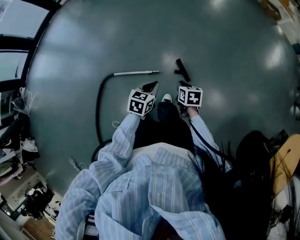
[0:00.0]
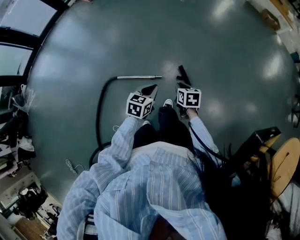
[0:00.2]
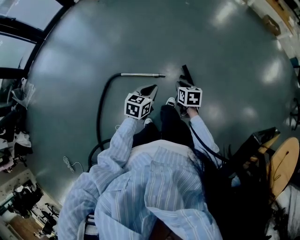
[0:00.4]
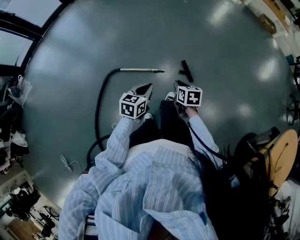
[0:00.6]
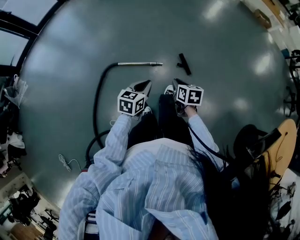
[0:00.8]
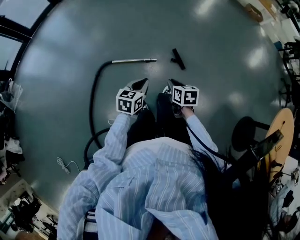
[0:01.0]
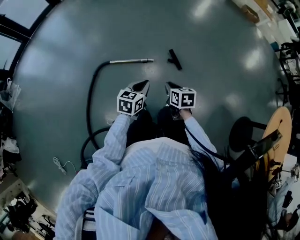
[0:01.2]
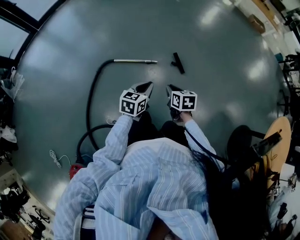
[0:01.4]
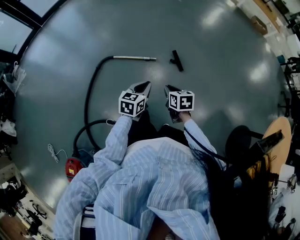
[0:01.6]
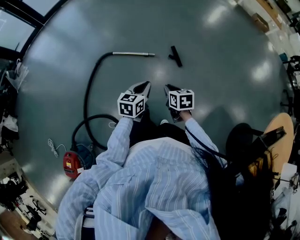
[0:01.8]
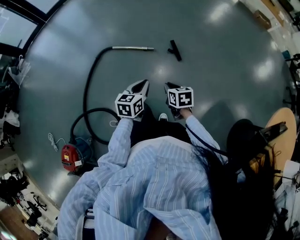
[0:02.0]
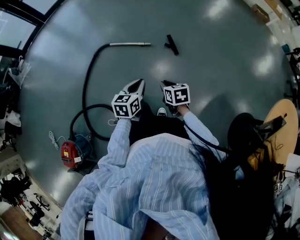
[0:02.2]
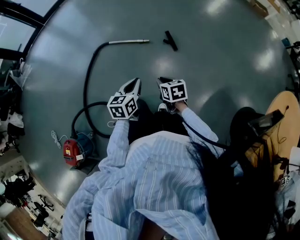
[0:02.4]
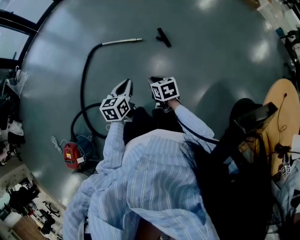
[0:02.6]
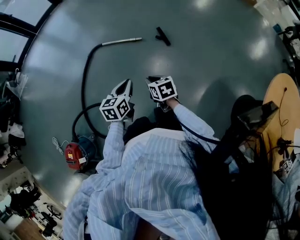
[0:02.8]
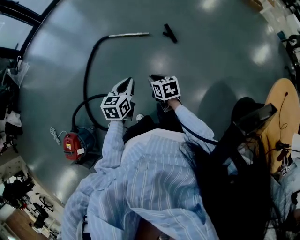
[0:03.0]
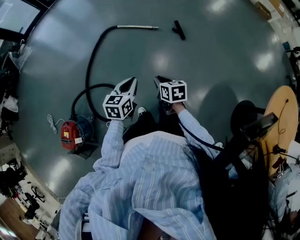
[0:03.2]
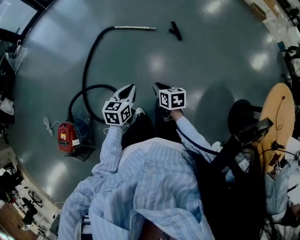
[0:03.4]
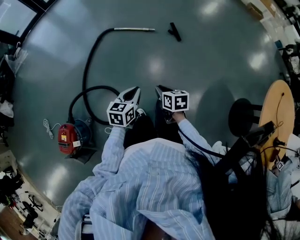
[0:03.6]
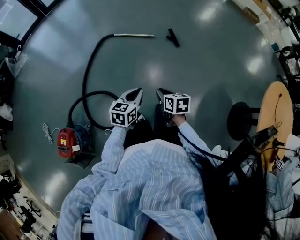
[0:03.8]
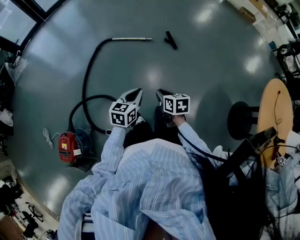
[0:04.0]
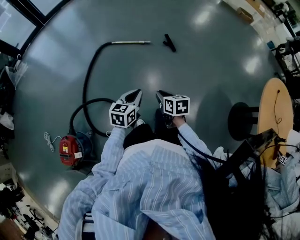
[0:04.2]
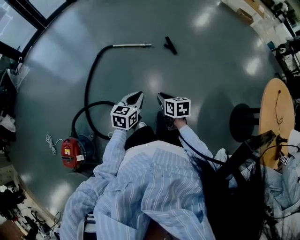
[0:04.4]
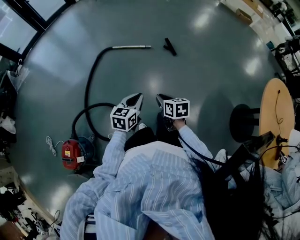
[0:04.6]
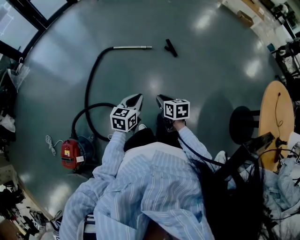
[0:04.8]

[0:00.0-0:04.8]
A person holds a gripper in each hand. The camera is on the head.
0.0 to 1.6 s: The two grippers go about 30 cm backward.
1.6 to 3.2 s: The two grippers go about 30 cm backward.
3.2 to 4.8 s: Both grippers travel together backward, approximately 5 cm.

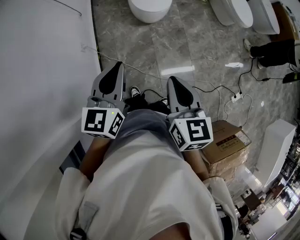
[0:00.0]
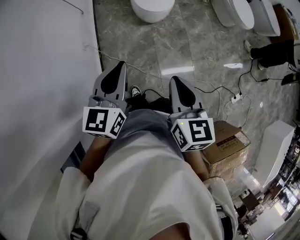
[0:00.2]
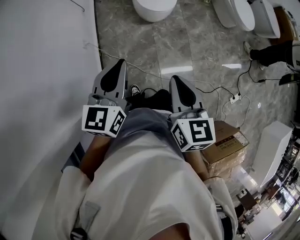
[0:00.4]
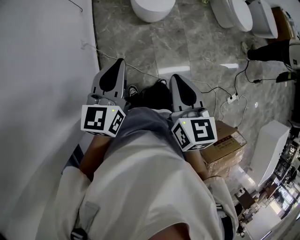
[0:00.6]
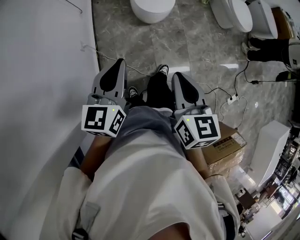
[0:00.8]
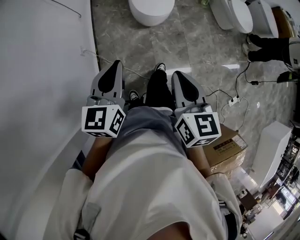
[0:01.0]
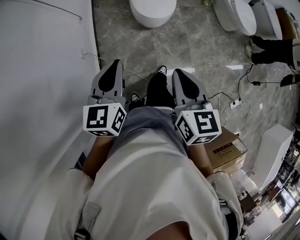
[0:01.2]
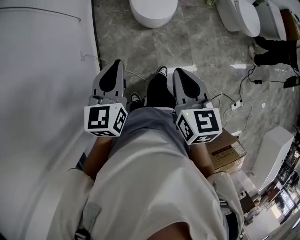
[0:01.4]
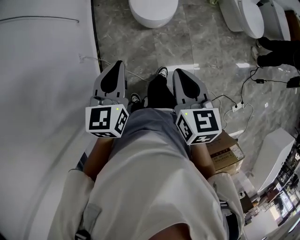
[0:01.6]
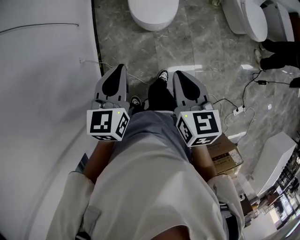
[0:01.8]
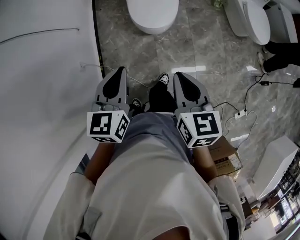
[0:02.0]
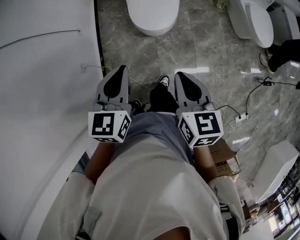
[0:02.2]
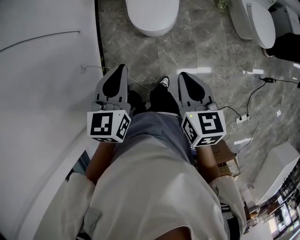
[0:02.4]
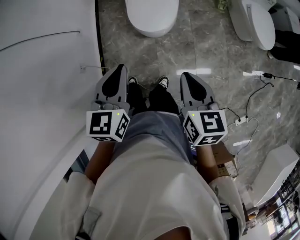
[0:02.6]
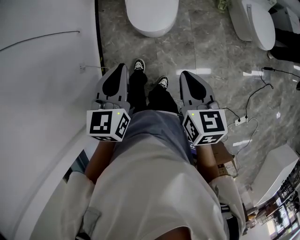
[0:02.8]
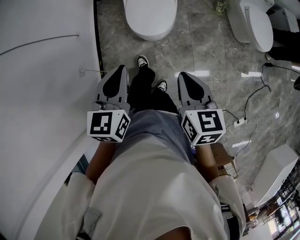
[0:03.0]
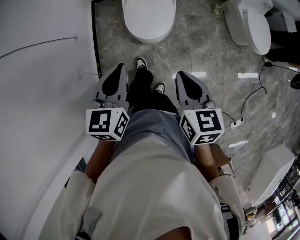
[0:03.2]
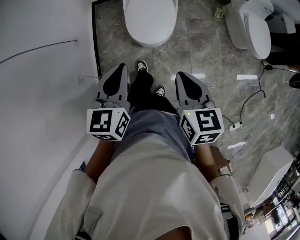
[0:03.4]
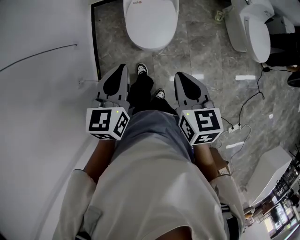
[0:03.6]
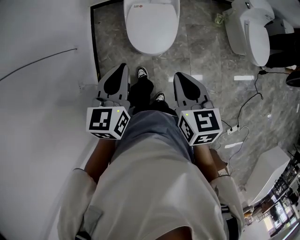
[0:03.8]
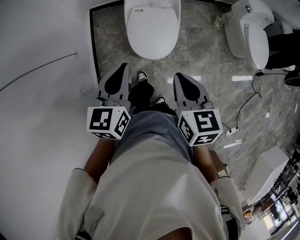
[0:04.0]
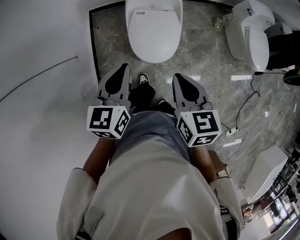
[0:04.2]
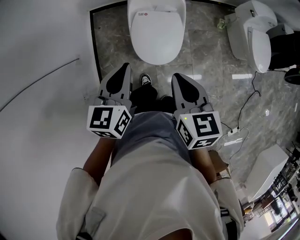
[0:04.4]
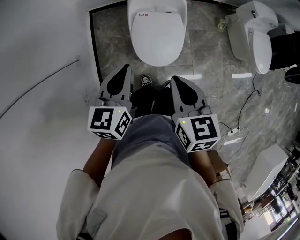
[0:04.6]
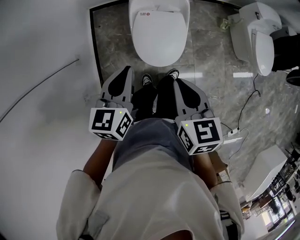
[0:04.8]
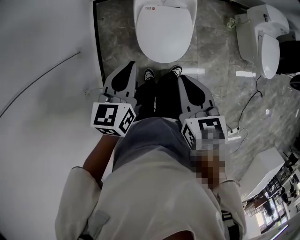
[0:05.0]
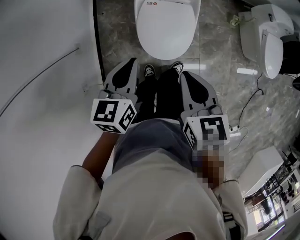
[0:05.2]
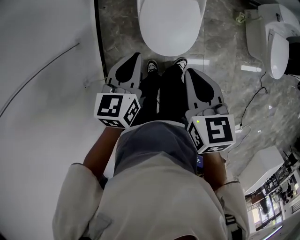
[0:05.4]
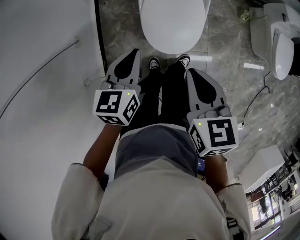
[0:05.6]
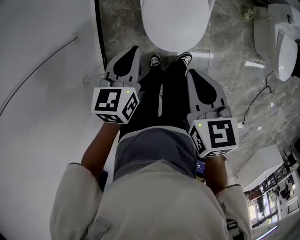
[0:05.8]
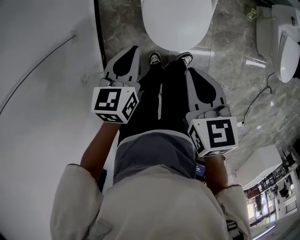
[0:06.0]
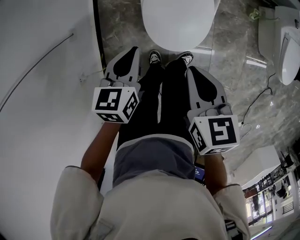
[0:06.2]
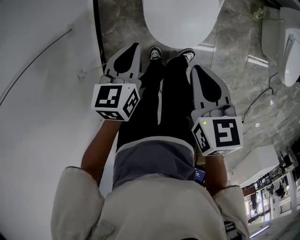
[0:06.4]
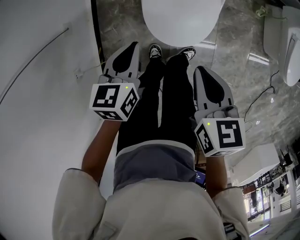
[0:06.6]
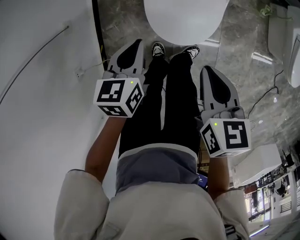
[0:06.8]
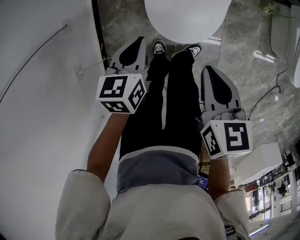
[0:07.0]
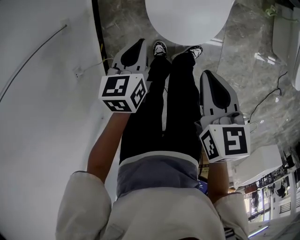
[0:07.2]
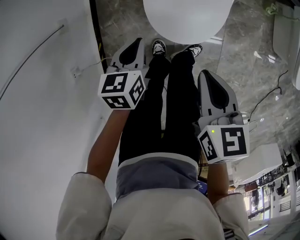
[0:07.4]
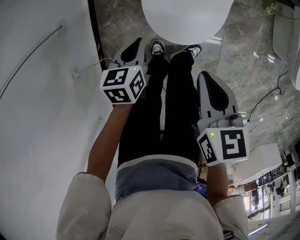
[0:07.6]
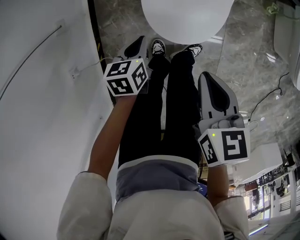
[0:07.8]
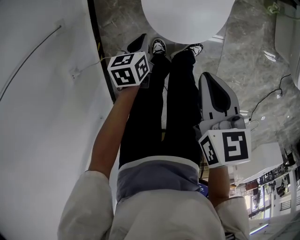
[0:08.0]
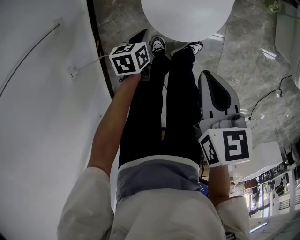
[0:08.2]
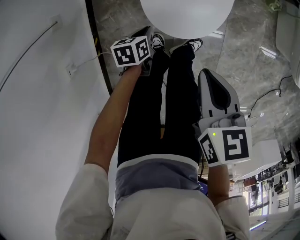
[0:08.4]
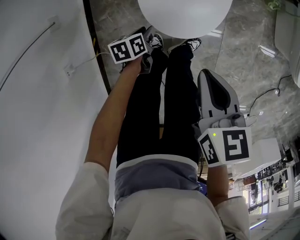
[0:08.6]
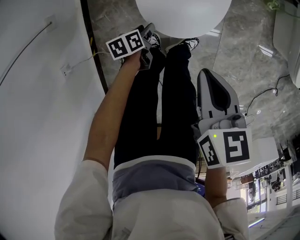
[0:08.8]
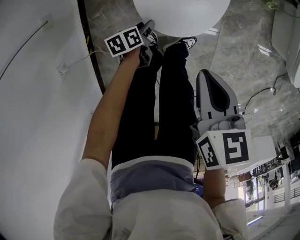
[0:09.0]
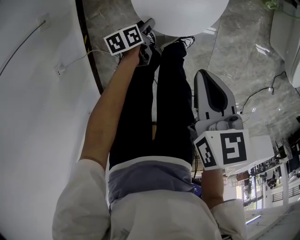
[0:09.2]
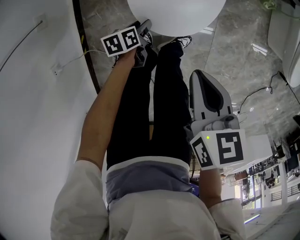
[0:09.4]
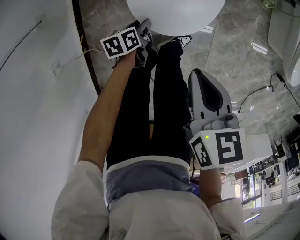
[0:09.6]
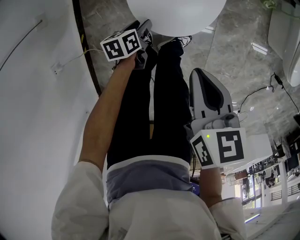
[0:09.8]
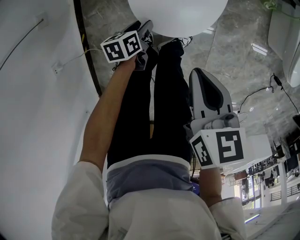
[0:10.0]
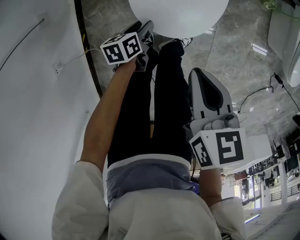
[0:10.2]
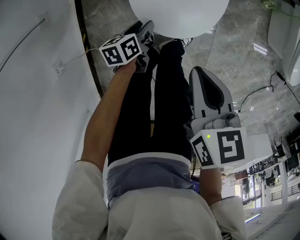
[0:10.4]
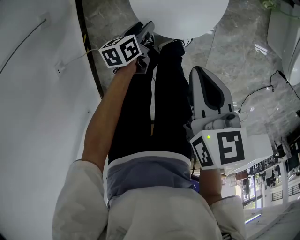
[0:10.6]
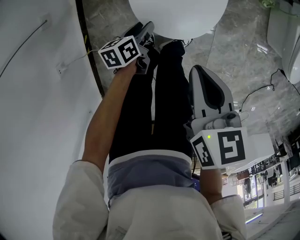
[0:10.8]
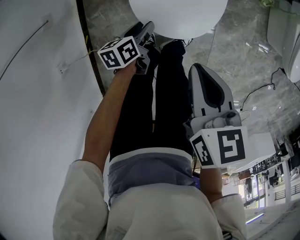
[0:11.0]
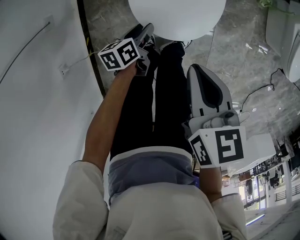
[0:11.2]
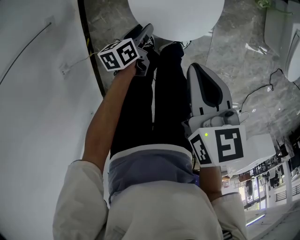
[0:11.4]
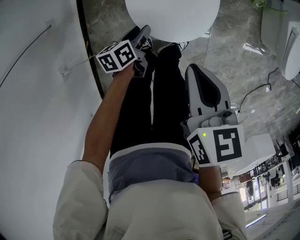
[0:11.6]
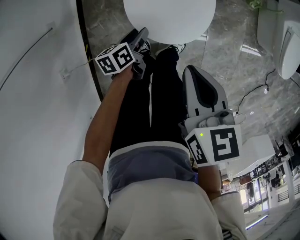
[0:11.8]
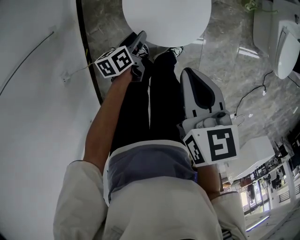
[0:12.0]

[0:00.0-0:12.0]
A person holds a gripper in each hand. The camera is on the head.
0.0 to 1.6 s: The grippers both shift forward by approximately 20 cm.
1.6 to 3.0 s: Both grippers travel together to the right and forward, approximately 20 cm.
3.0 to 4.4 s: The left gripper goes approximately 25 cm forward, while the right gripper goes approximately 25 cm forward and to the left.
4.4 to 6.0 s: The left gripper shifts about 20 cm downward; the right gripper moves downward and forward, roughly 15 cm.
6.0 to 7.6 s: The right gripper heads downward, covering approximately 15 cm, while the left gripper shifts about 20 cm downward.
7.6 to 9.0 s: The left gripper goes some 20 cm downward, swivels some 30 degrees, and opens its fingers.
9.0 to 10.4 s: The left gripper goes about 5 cm upward.
10.4 to 12.0 s: Both grippers travel together upward, roughly 10 cm.

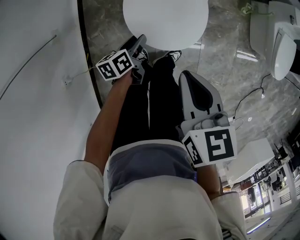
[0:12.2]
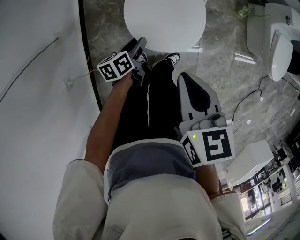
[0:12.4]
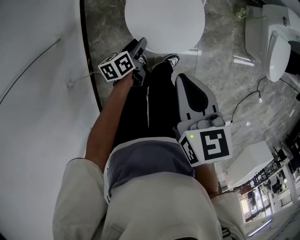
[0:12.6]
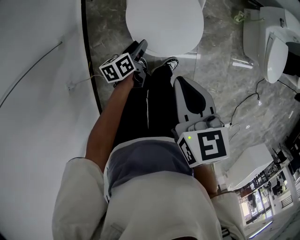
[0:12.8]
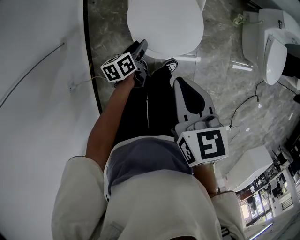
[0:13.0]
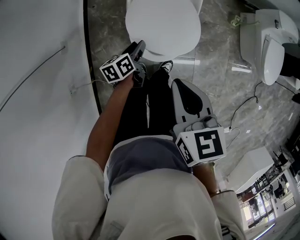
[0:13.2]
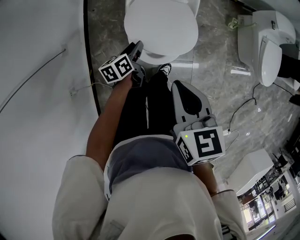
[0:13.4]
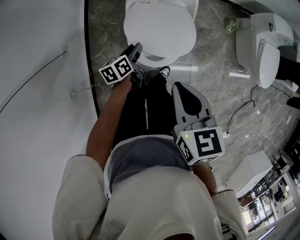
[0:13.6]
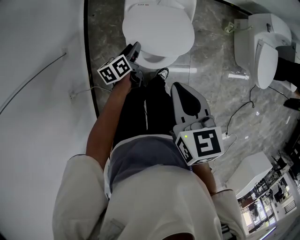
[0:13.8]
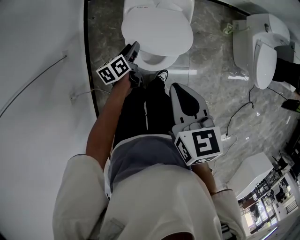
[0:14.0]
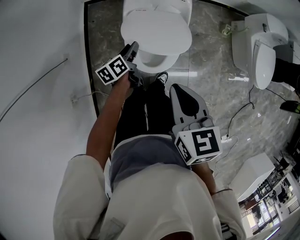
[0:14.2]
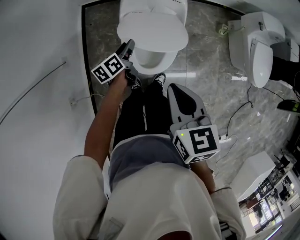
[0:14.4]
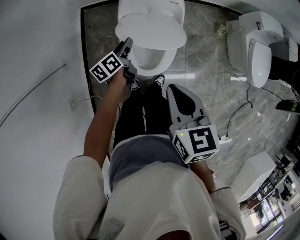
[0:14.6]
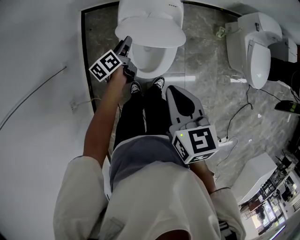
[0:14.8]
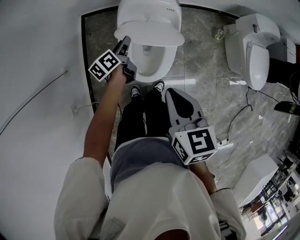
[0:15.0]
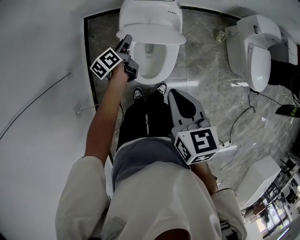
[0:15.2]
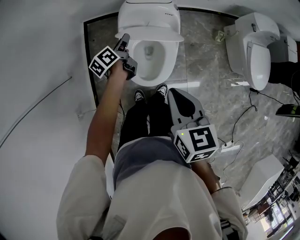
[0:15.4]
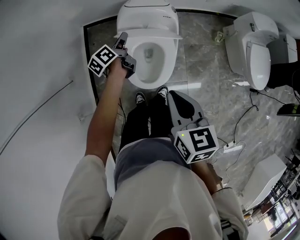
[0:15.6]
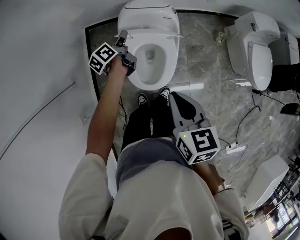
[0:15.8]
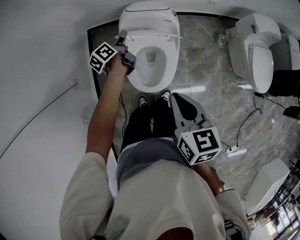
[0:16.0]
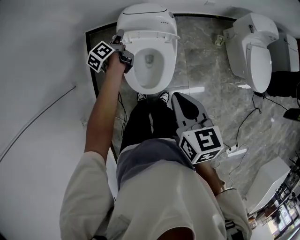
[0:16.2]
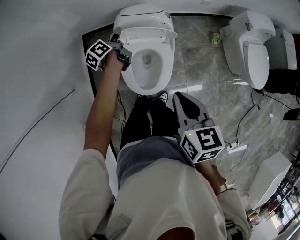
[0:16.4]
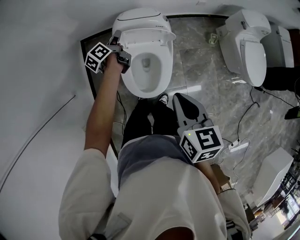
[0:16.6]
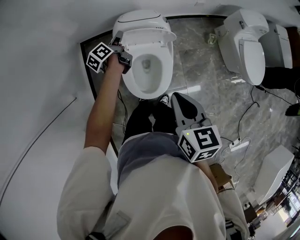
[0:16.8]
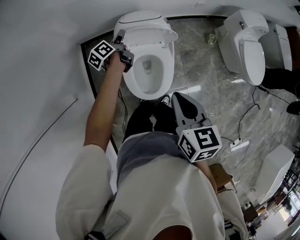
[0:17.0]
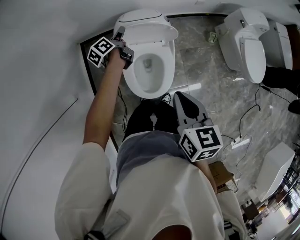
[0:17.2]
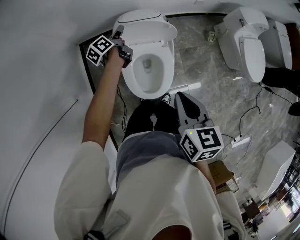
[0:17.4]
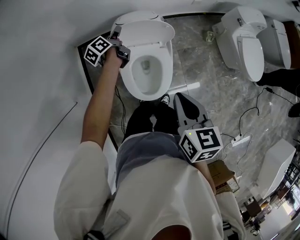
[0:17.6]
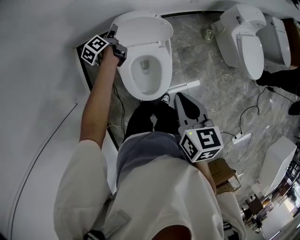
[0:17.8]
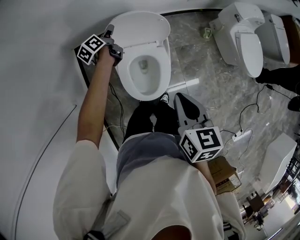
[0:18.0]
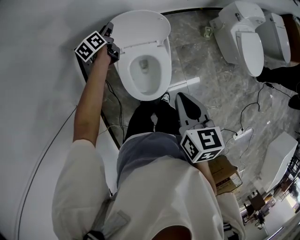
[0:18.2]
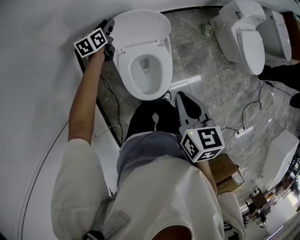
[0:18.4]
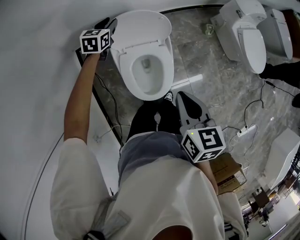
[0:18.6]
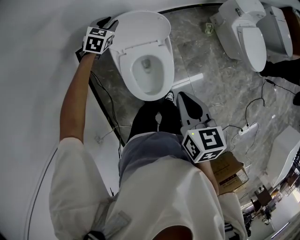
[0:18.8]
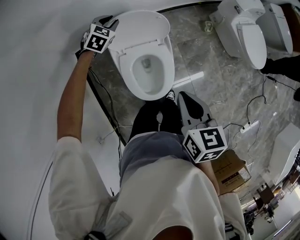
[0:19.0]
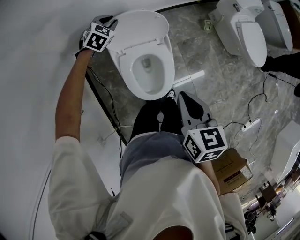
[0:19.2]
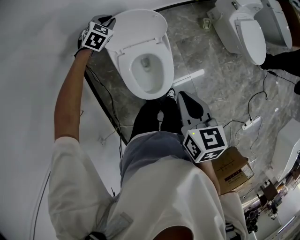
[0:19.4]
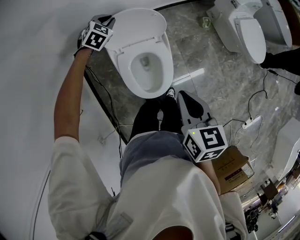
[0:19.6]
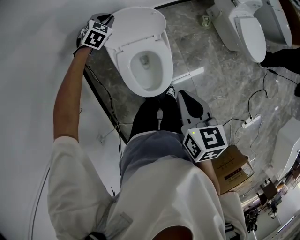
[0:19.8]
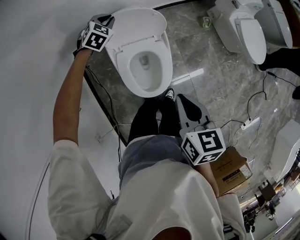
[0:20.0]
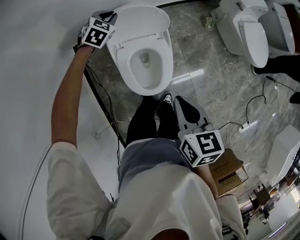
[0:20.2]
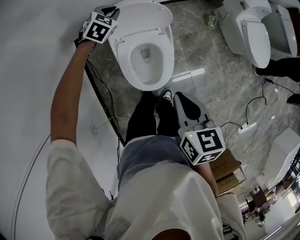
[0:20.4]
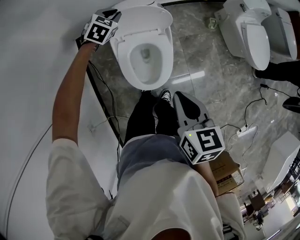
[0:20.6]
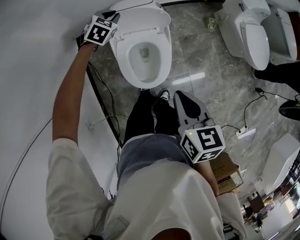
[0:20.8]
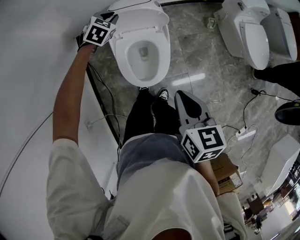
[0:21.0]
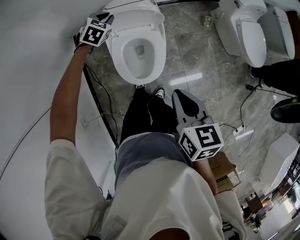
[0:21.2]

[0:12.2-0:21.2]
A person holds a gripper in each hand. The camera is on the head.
12.2 to 13.8 s: The right gripper heads upward, covering some 10 cm; the left gripper moves upward and forward, approximately 10 cm.
13.8 to 15.2 s: The right gripper shifts by about 5 cm, while the left gripper heads forward and upward, covering some 15 cm.
15.2 to 16.6 s: The right gripper ends up about 5 cm from where it was. The left gripper goes approximately 10 cm forward.
16.6 to 18.2 s: The left gripper shifts some 10 cm forward, and swivels approximately 30 degrees.
18.2 to 19.8 s: The left gripper travels to the right by approximately 5 cm, and twists some 80 degrees clockwise, seen from behind.
19.8 to 21.2 s: Both grippers travel together backward, about 10 cm.
